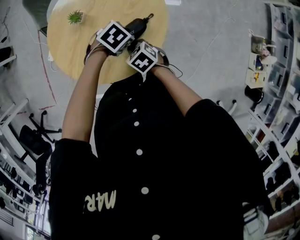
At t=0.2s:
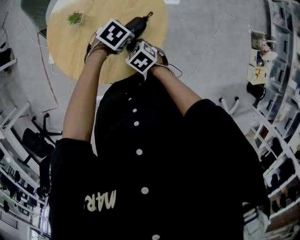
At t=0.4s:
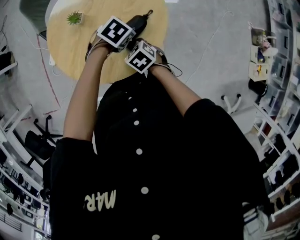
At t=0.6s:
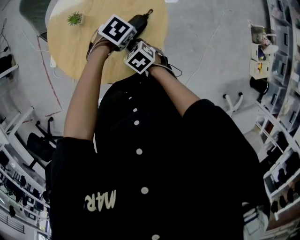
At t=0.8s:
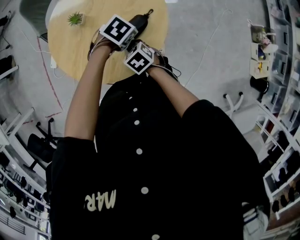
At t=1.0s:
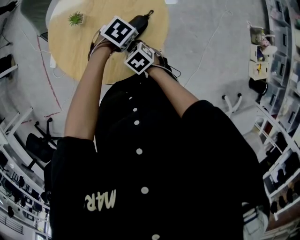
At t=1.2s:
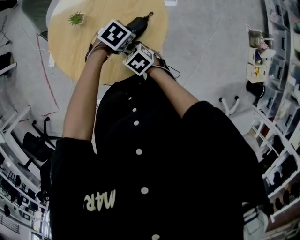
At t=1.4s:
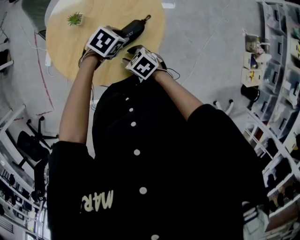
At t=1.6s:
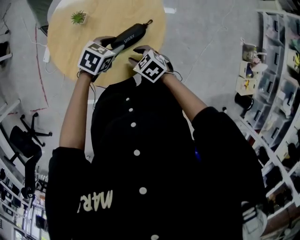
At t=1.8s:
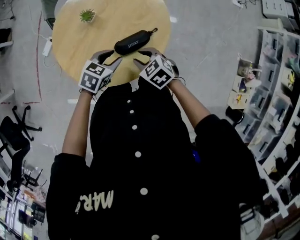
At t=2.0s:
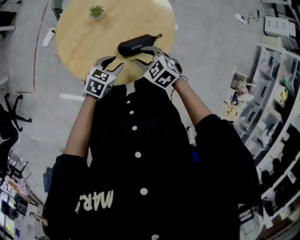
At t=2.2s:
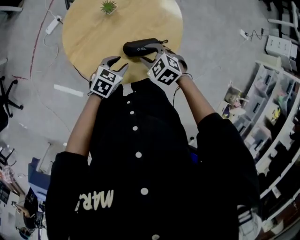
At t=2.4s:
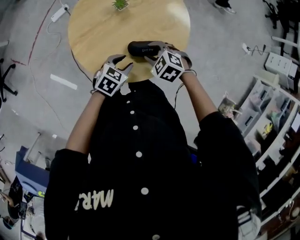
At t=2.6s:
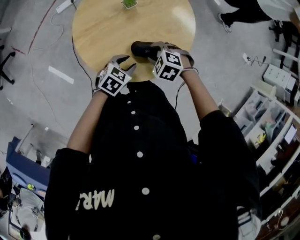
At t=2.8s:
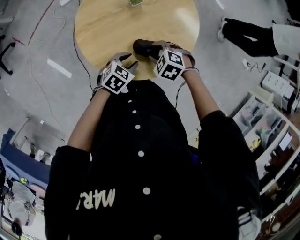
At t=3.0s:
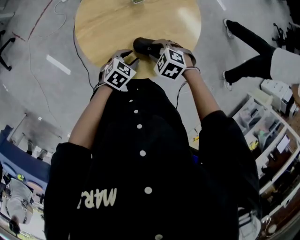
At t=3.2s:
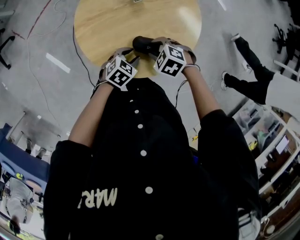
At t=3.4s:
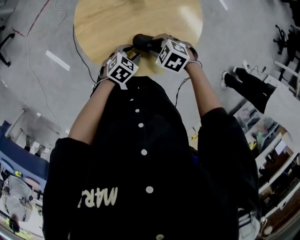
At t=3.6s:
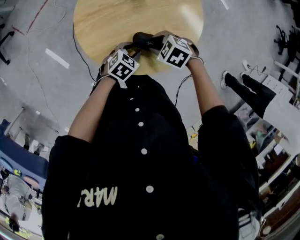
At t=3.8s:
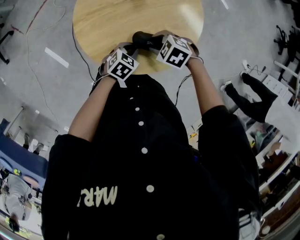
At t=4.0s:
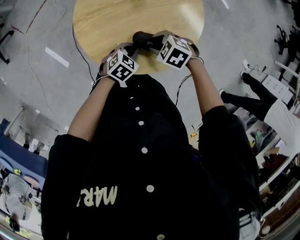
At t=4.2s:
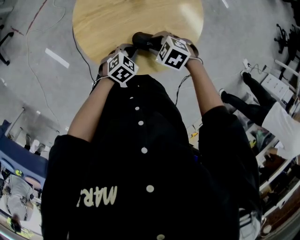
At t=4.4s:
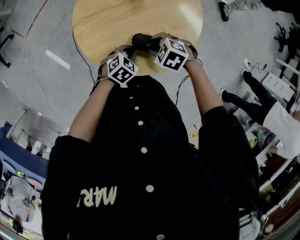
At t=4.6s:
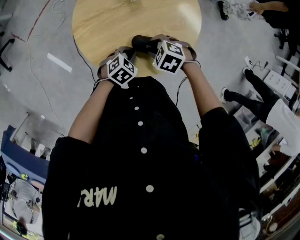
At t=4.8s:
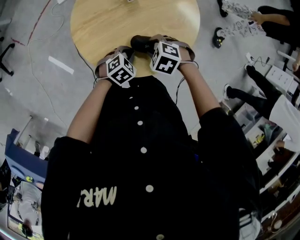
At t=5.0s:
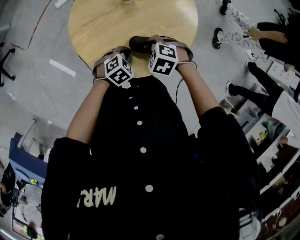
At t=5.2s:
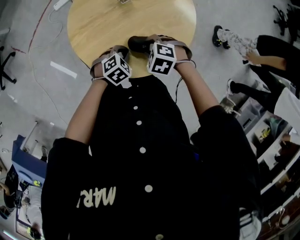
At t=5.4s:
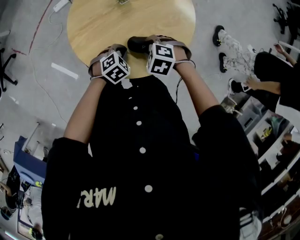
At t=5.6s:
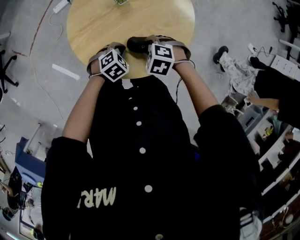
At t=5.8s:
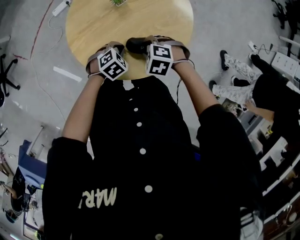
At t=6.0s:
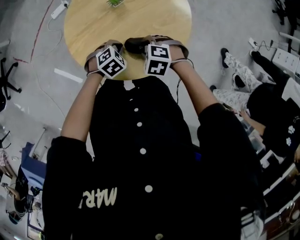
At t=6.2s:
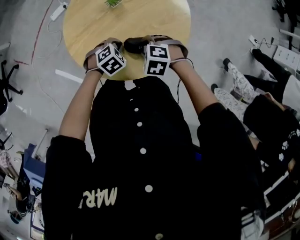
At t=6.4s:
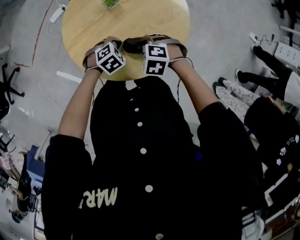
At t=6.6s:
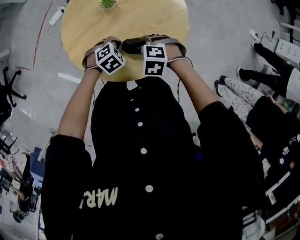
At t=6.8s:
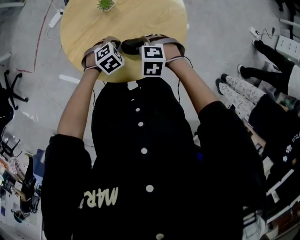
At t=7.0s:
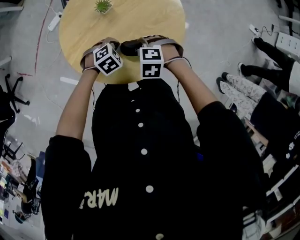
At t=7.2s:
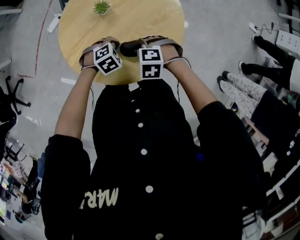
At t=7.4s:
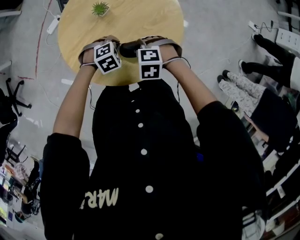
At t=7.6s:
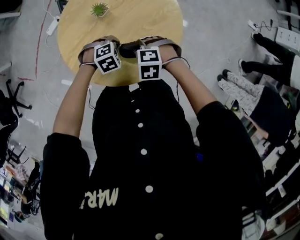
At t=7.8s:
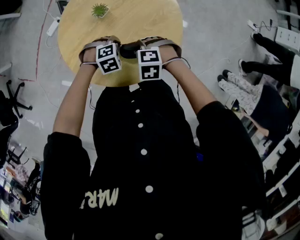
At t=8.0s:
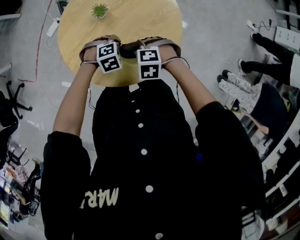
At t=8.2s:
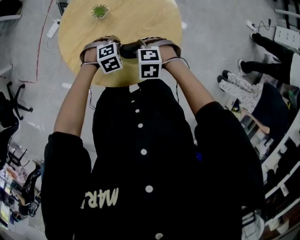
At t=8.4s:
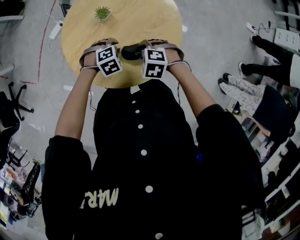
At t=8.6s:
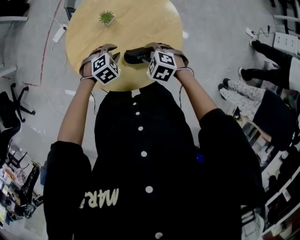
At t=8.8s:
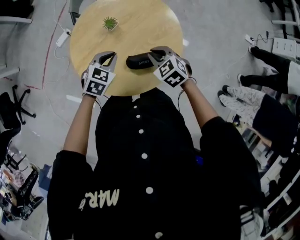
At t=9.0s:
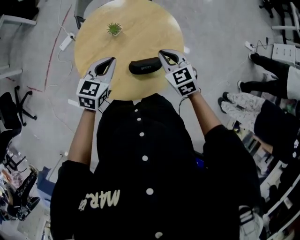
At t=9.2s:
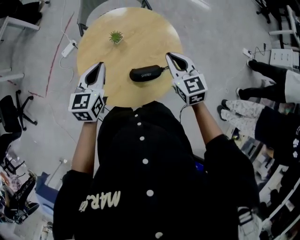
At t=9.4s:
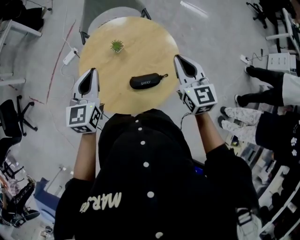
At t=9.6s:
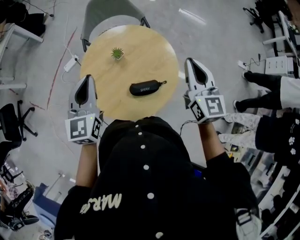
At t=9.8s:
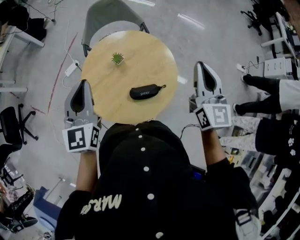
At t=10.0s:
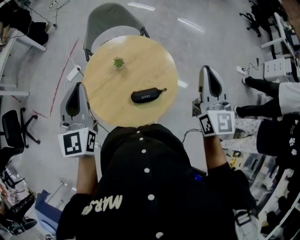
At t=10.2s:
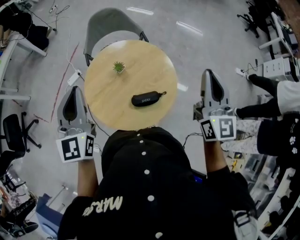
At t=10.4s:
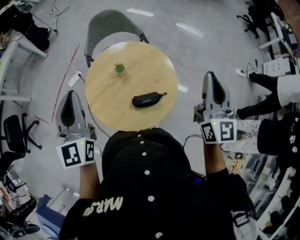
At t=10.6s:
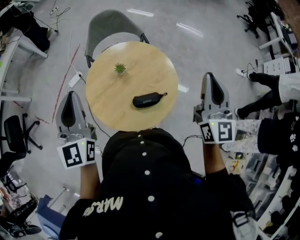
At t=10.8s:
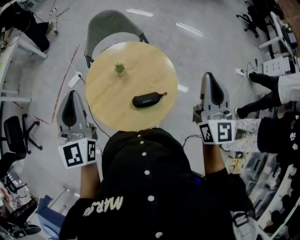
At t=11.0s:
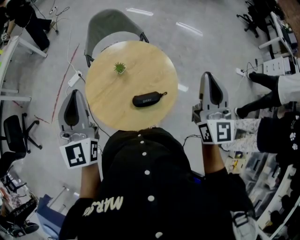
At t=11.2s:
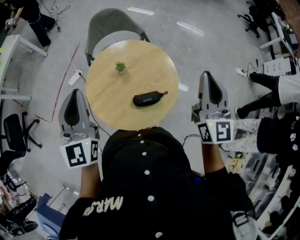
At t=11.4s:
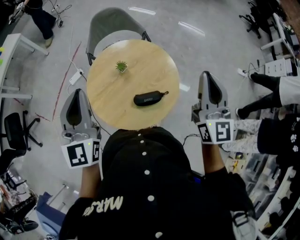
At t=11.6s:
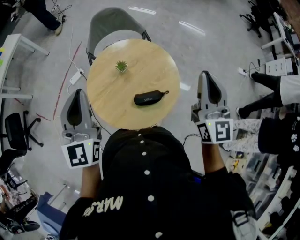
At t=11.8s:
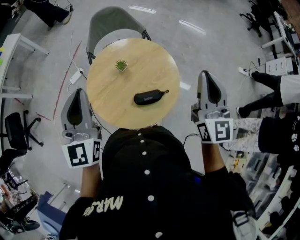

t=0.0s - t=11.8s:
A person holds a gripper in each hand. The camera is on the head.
t=0.0s - t=1.4s: The right gripper opens up.
t=1.4s - t=3.0s: The left gripper shifts by approximately 10 cm, and turns by roughly 50 degrees, while the right gripper moves about 10 cm, and rotates around the line of its fingers by about 70 degrees, counterclockwise from behind.
t=3.0s - t=4.4s: The left gripper closes its fingers.
t=4.4s - t=6.0s: The left gripper turns by roughly 20 degrees.
t=6.0s - t=7.4s: The left gripper swivels approximately 30 degrees.
t=7.4s - t=8.8s: The left gripper is displaced upward by roughly 15 cm, and swivels about 40 degrees. Meanwhile the right gripper goes roughly 10 cm upward, rotates about 40 degrees, and closes.
t=8.8s - t=10.4s: The two grippers go some 40 cm upward. The left gripper points its fingers some 50 degrees further upward, while the right gripper angles its fingers upward, by roughly 60 degrees.
t=10.4s - t=11.8s: There are only small adjustments of the grippers.

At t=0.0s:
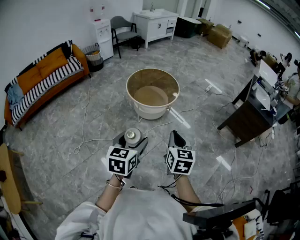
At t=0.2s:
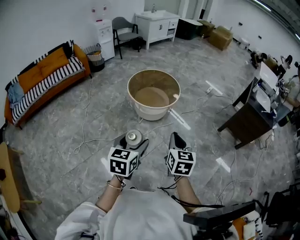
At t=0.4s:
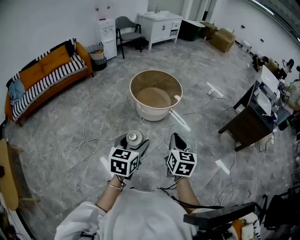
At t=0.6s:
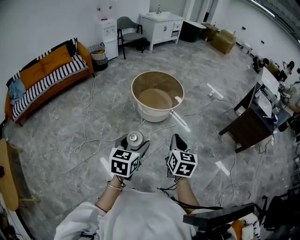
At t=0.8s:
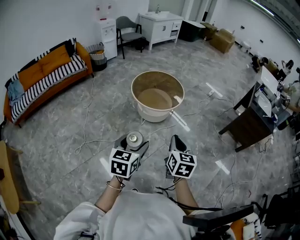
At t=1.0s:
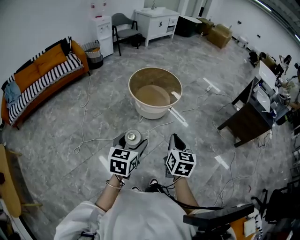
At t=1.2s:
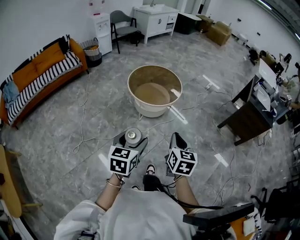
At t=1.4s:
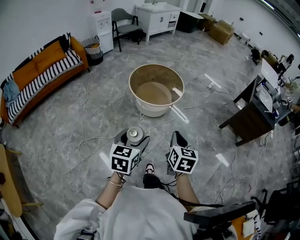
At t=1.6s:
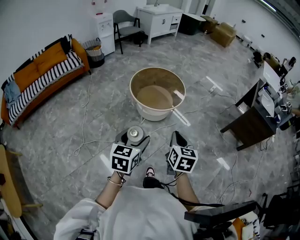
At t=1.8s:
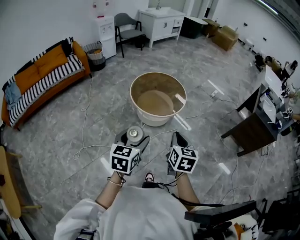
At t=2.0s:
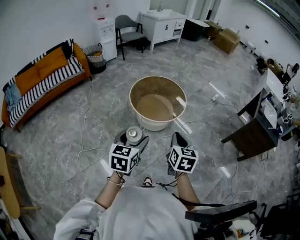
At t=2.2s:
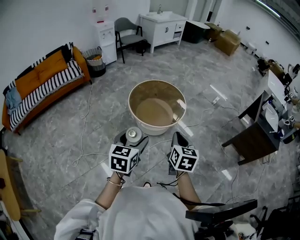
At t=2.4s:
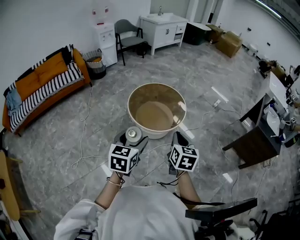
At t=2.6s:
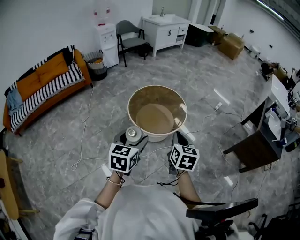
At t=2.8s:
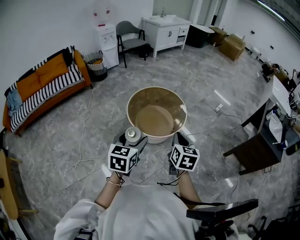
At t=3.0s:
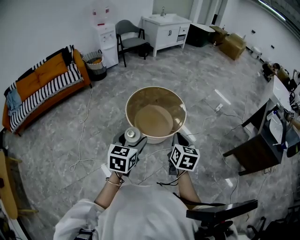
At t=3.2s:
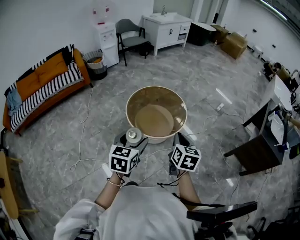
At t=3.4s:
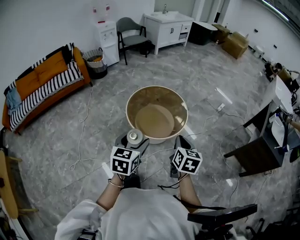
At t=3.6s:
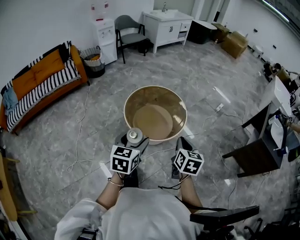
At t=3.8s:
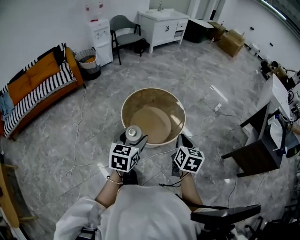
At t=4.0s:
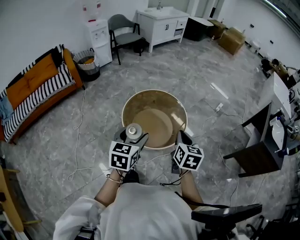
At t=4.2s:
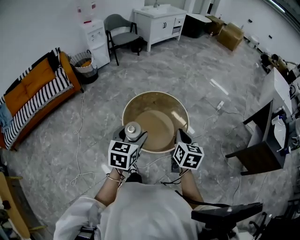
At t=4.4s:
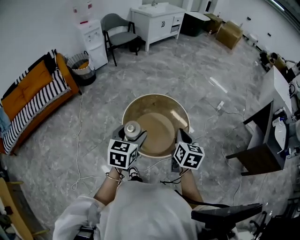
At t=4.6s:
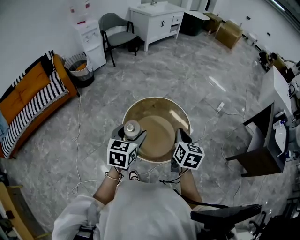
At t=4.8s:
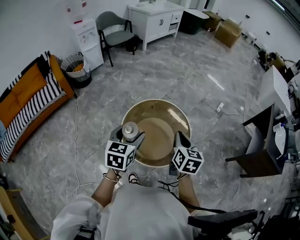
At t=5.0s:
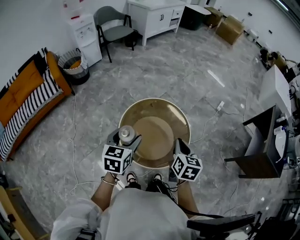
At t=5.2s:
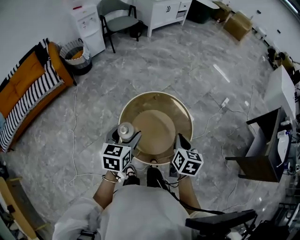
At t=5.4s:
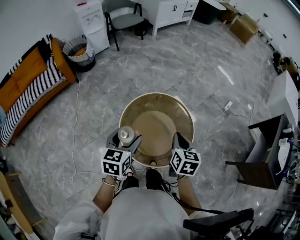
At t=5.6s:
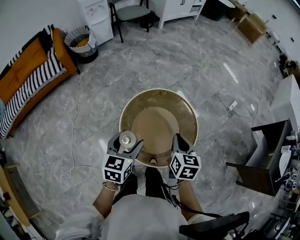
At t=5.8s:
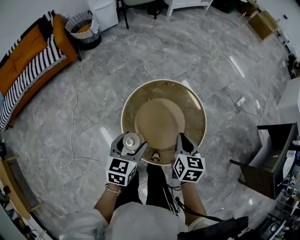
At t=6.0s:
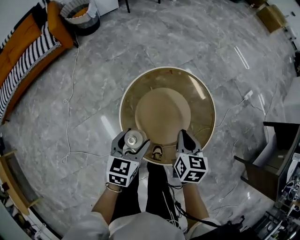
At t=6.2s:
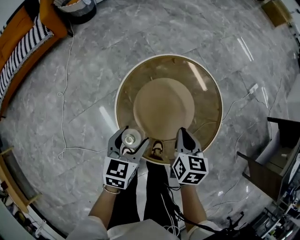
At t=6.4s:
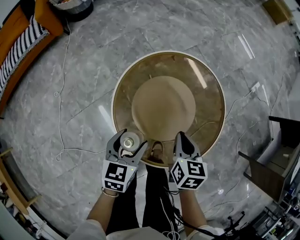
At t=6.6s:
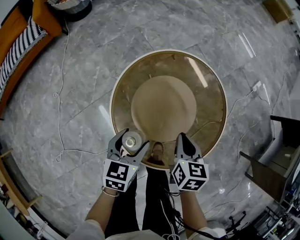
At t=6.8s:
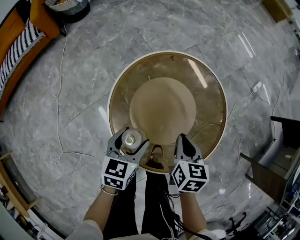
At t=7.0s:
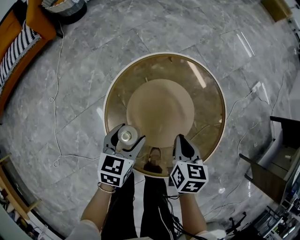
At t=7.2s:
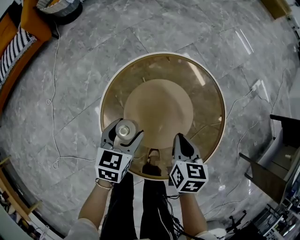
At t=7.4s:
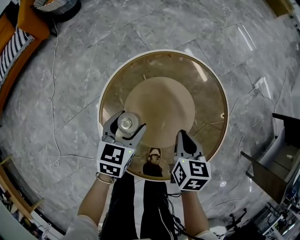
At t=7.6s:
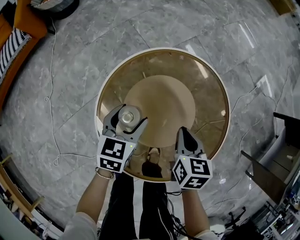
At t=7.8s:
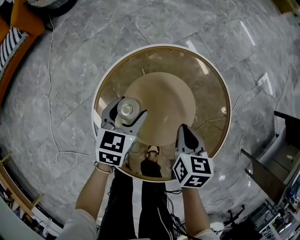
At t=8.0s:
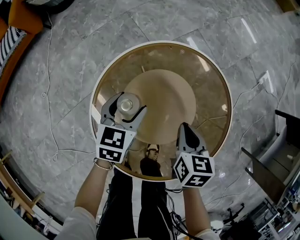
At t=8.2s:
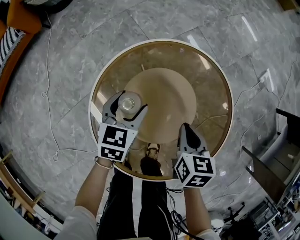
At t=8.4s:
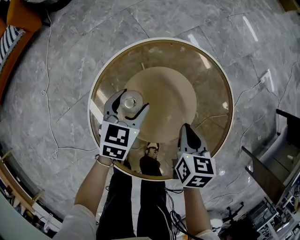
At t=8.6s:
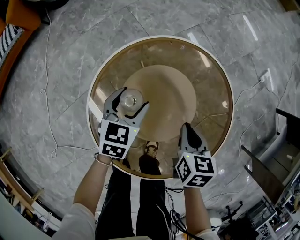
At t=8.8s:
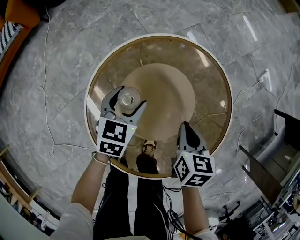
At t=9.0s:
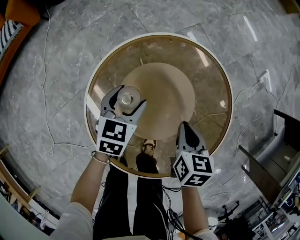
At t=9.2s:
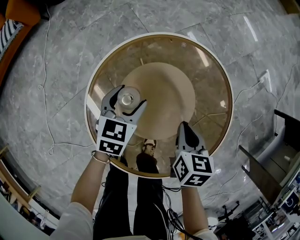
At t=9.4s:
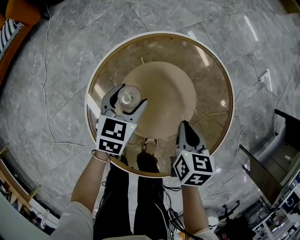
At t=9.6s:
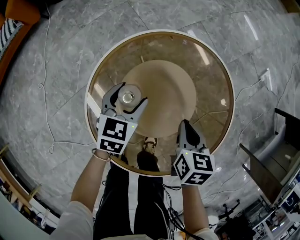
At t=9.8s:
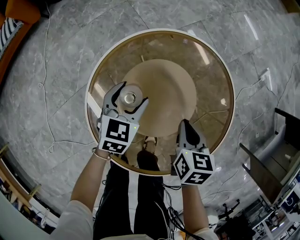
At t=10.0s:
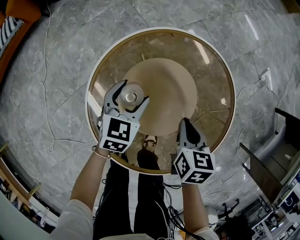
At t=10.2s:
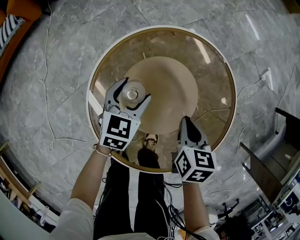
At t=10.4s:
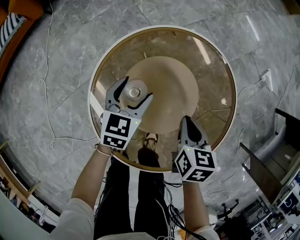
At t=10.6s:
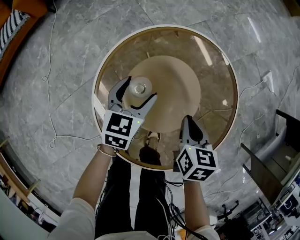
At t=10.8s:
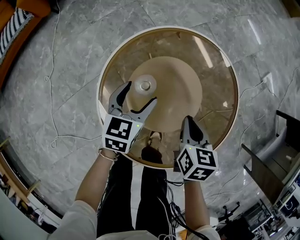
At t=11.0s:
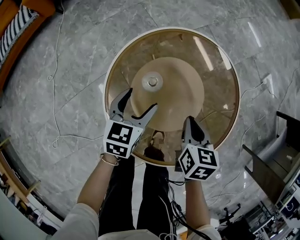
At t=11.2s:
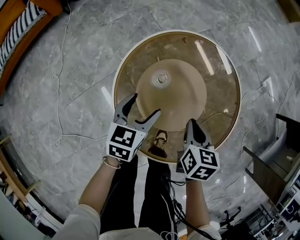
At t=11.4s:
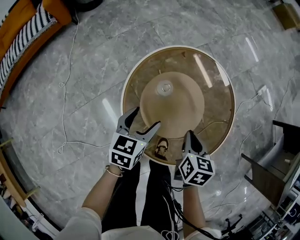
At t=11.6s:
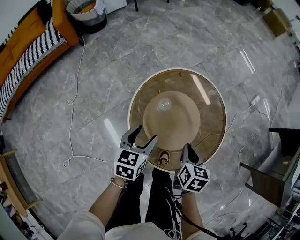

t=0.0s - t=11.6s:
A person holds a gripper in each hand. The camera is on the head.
t=0.0s - t=1.4s: The left gripper goes approximately 5 cm to the left; the right gripper shifts by about 5 cm.
t=1.4s - t=2.8s: The grippers both shift forward by approximately 25 cm.
t=2.8s - t=4.4s: The two grippers go roughly 25 cm forward.
t=4.4s - t=5.8s: The right gripper shifts approximately 25 cm forward and downward, while the left gripper travels downward and forward by about 20 cm.
t=5.8s - t=7.2s: The left gripper is displaced downward and forward by roughly 25 cm. Meanwhile the right gripper travels downward by about 25 cm.
t=7.2s - t=8.8s: The left gripper heads forward and downward, covering roughly 10 cm. The right gripper moves downward, some 5 cm.
t=8.8s - t=10.2s: The grippers stay close to where they were, moving slightly.
t=10.2s - t=11.6s: The two grippers go some 20 cm upward and backward.
